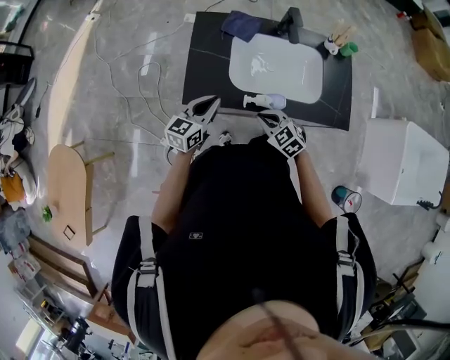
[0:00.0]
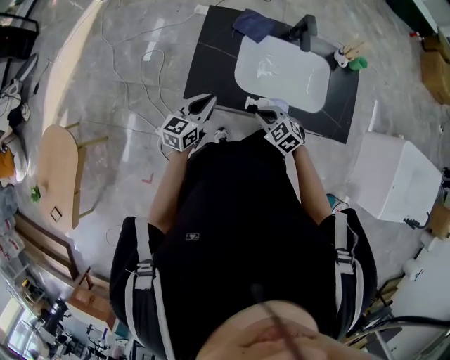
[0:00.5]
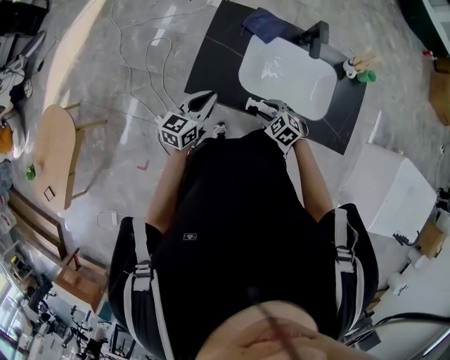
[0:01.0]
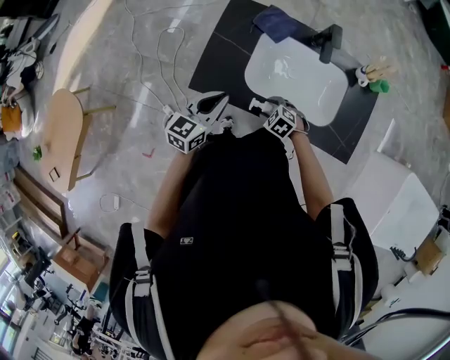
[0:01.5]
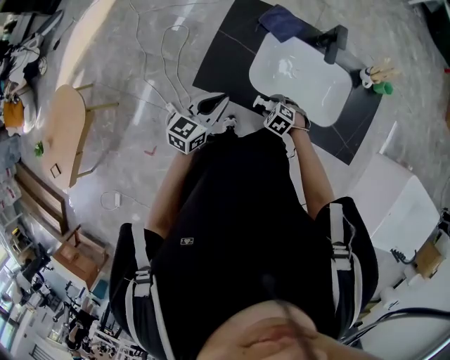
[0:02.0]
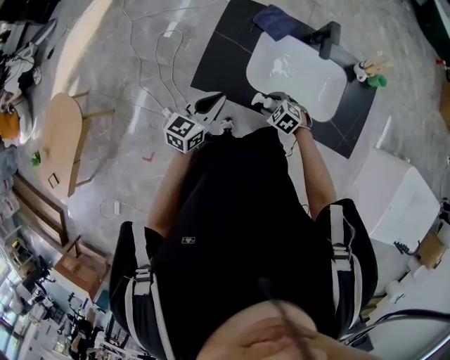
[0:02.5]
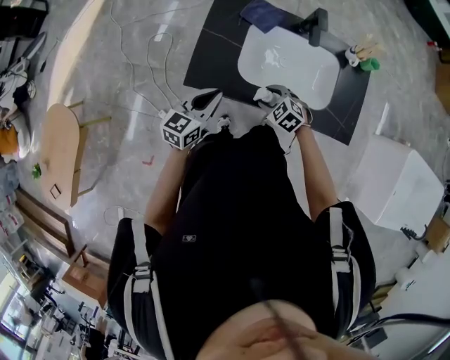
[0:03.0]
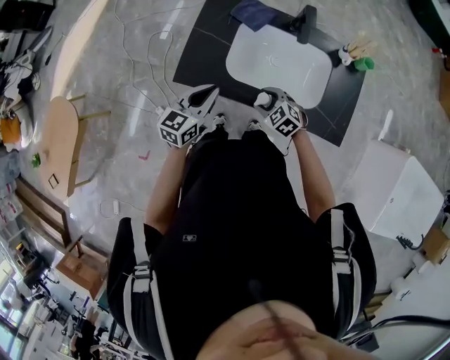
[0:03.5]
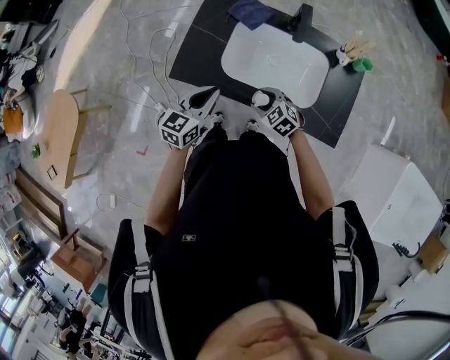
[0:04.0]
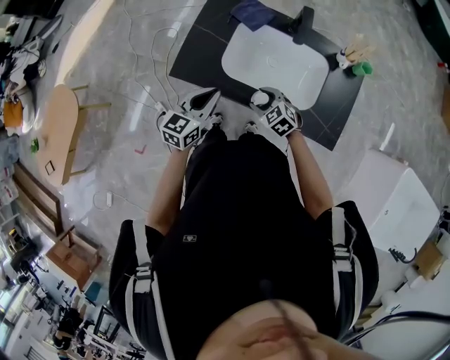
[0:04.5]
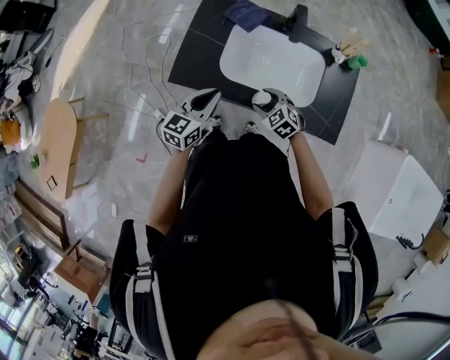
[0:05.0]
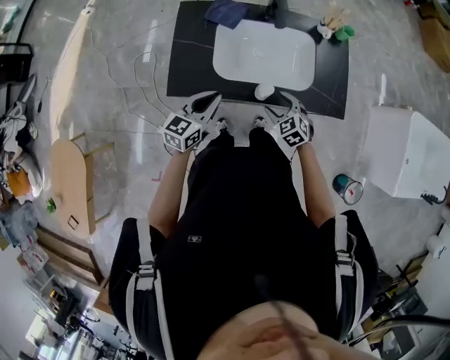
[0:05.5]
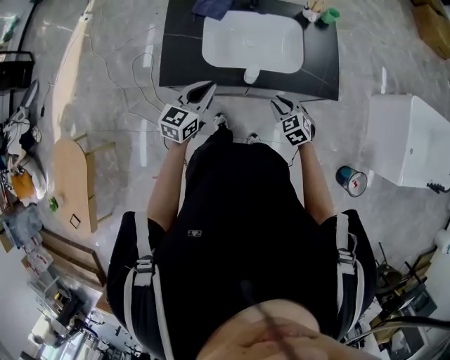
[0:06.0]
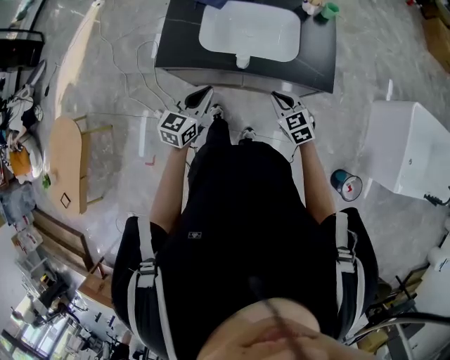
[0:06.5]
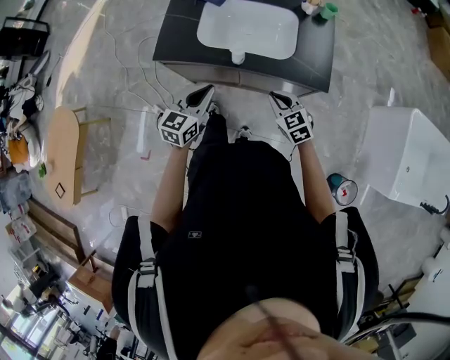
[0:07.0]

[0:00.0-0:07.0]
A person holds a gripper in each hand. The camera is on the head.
0:00.0 to 0:02.0: The right gripper heads downward and forward, covering some 15 cm, turns by approximately 30 degrees, and opens.
0:02.0 to 0:03.5: The left gripper goes roughly 5 cm to the right. Meanwhile the right gripper heads upward, covering about 10 cm, and turns by some 20 degrees.
0:03.5 to 0:05.0: The grippers make only small movements.
0:05.0 to 0:07.0: The left gripper heads backward and to the right, covering approximately 15 cm; the right gripper goes approximately 20 cm backward, to the right and upward, turns by about 20 degrees, and closes up.

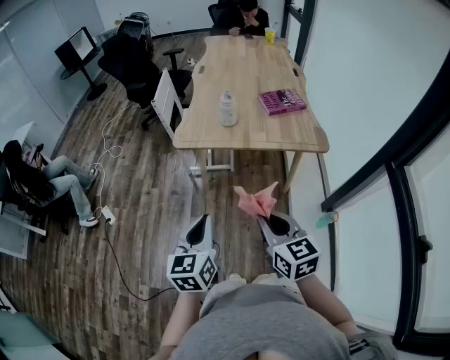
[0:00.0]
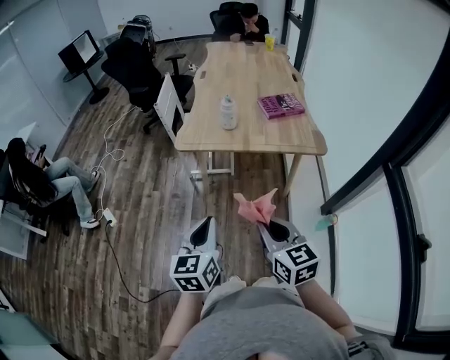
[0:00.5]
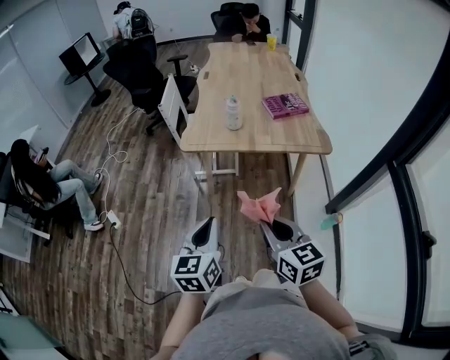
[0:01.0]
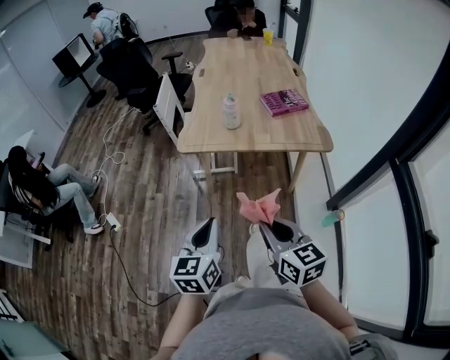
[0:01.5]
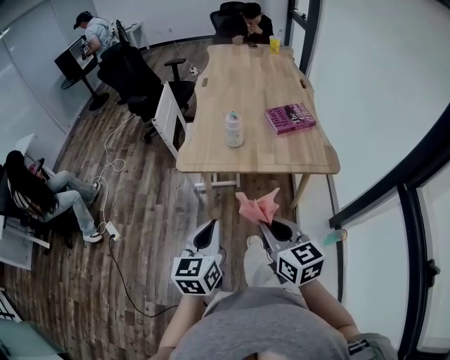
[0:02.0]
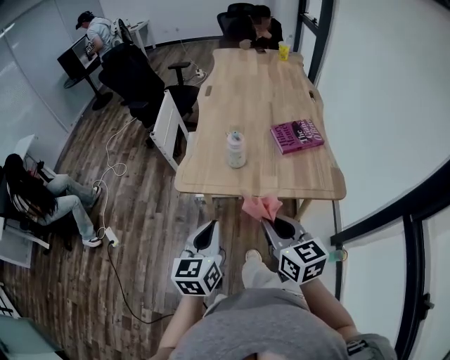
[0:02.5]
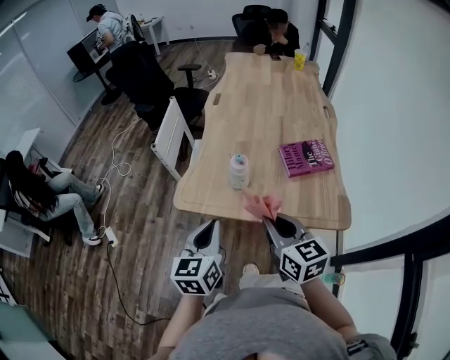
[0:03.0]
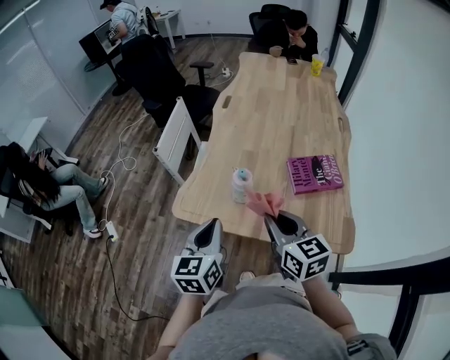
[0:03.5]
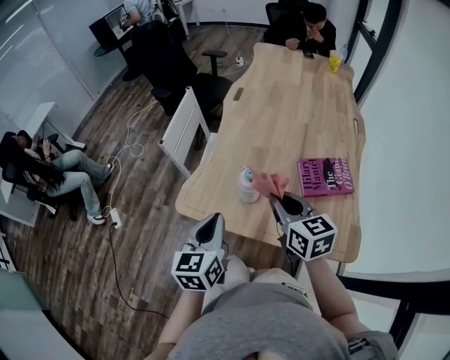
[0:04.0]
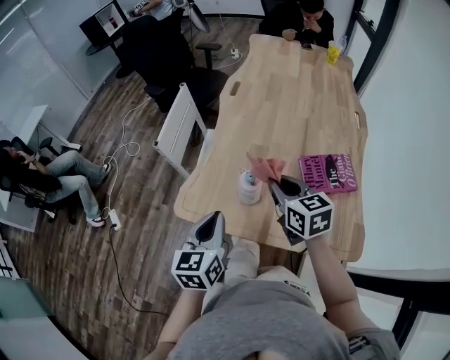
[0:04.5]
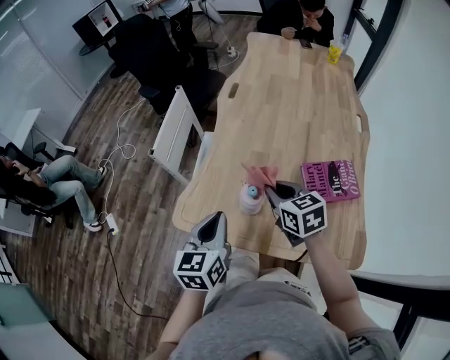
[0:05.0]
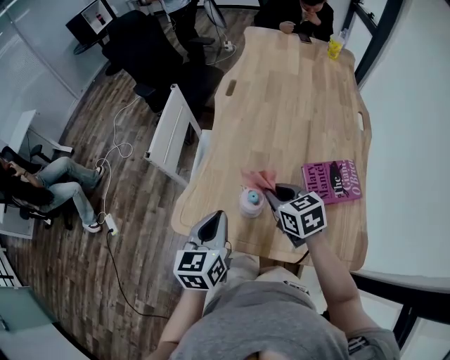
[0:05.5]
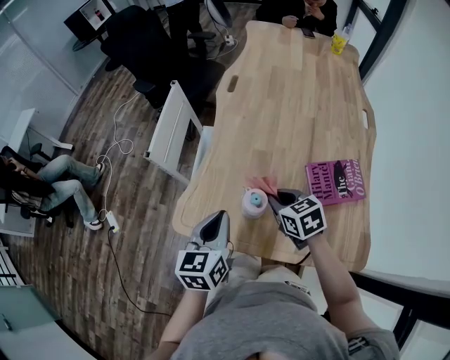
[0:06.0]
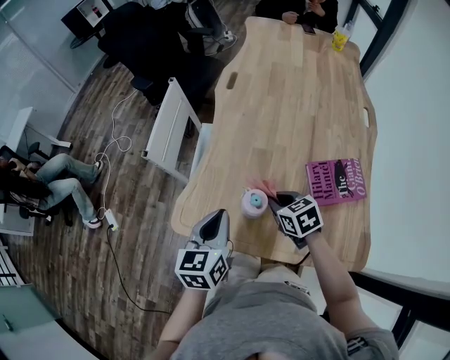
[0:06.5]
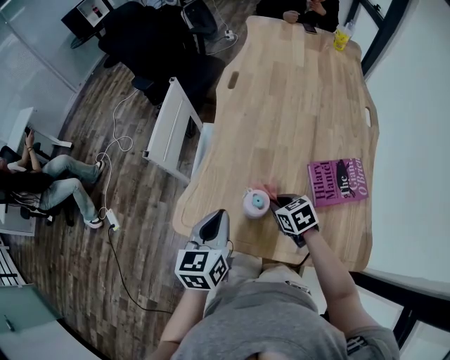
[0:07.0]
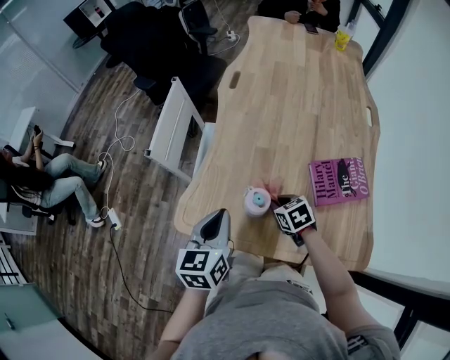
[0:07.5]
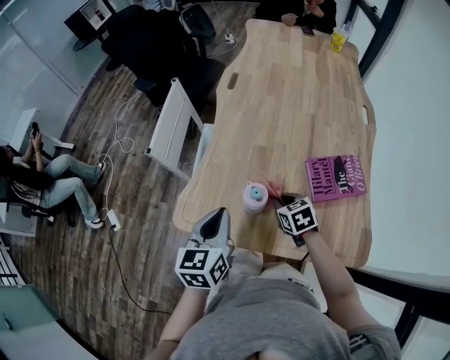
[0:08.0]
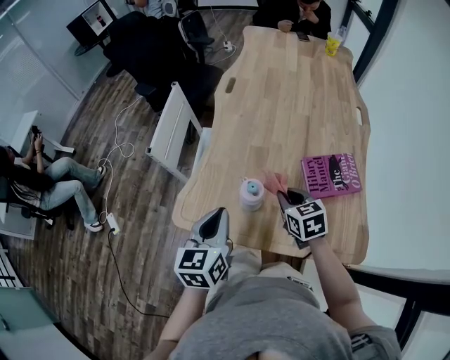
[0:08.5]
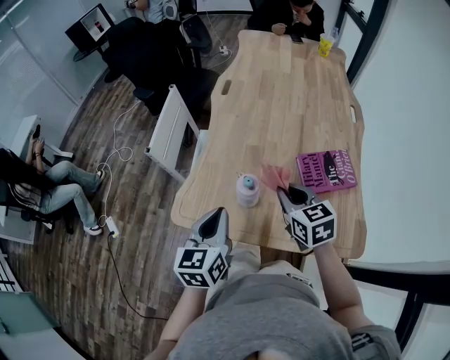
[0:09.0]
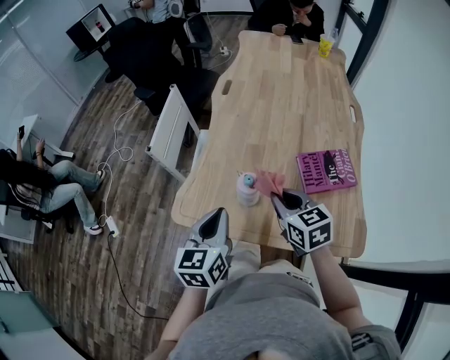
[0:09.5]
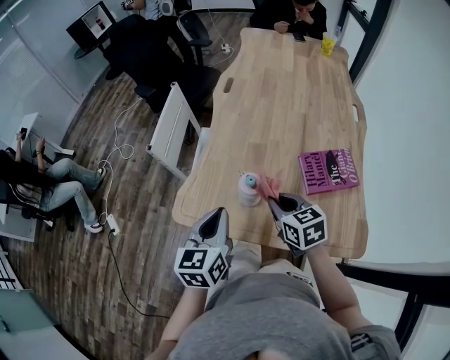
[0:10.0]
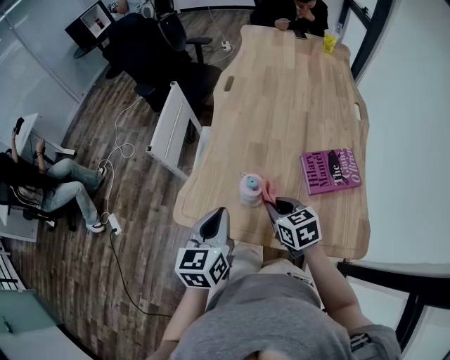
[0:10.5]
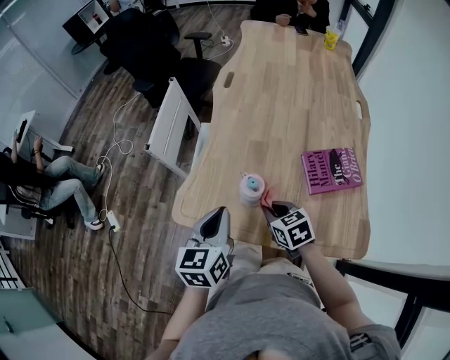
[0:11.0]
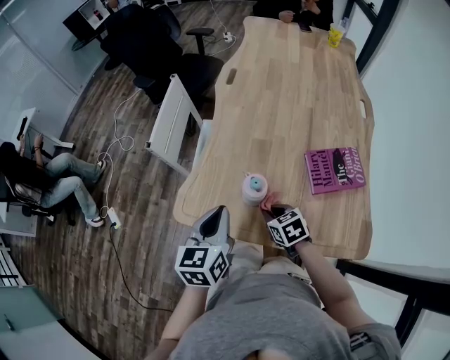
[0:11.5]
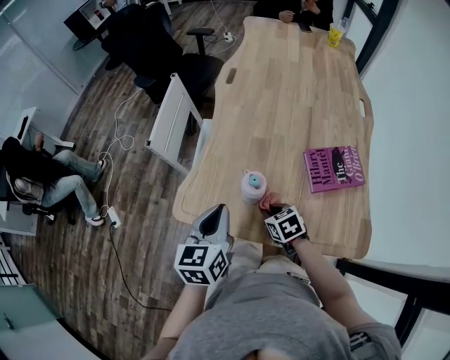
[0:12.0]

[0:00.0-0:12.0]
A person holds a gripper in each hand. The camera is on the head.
0:00.0 to 0:02.0: The grippers both shift forward by some 10 cm.
0:02.0 to 0:04.0: The two grippers go about 35 cm forward.
0:04.0 to 0:06.0: The left gripper heads forward, covering some 10 cm. The right gripper moves downward and forward, about 20 cm, and rotates roughly 20 degrees.
0:06.0 to 0:08.0: The right gripper shifts approximately 10 cm downward.
0:08.0 to 0:10.0: The right gripper is displaced upward by approximately 10 cm.
0:10.0 to 0:12.0: The right gripper moves downward, some 15 cm, and turns by approximately 20 degrees.

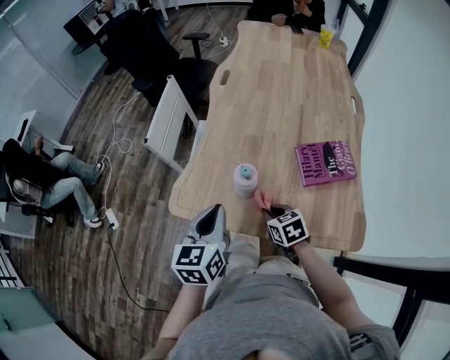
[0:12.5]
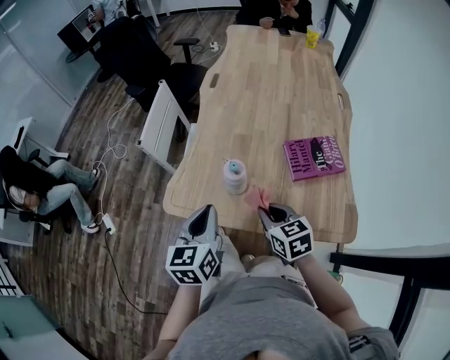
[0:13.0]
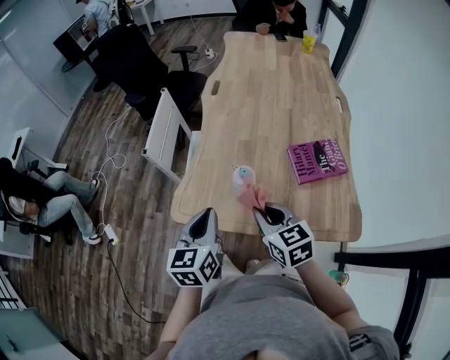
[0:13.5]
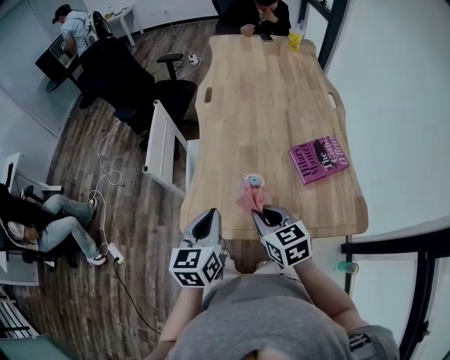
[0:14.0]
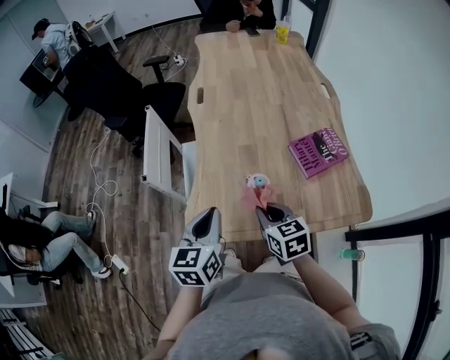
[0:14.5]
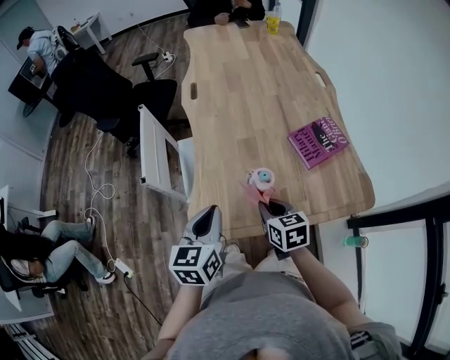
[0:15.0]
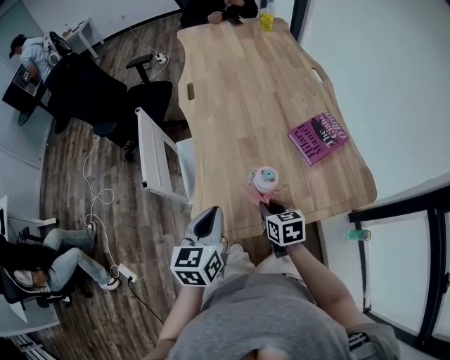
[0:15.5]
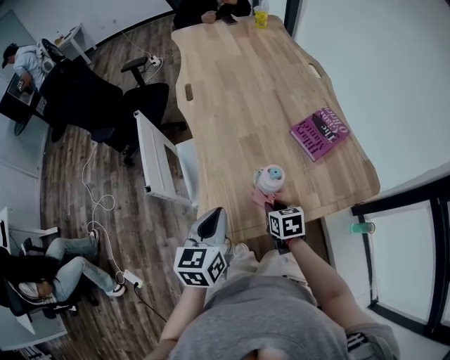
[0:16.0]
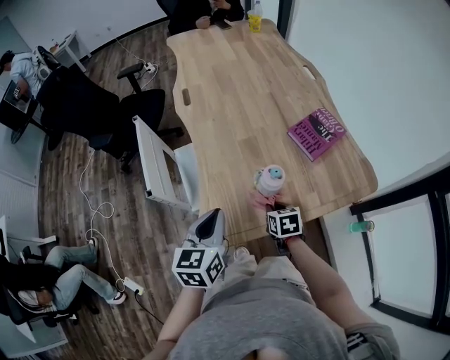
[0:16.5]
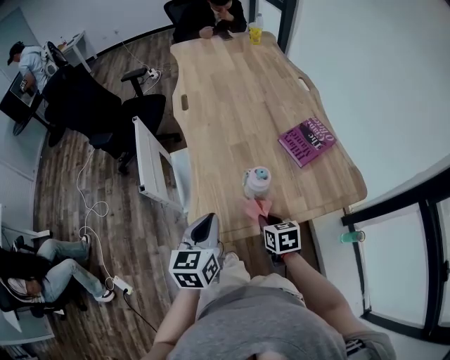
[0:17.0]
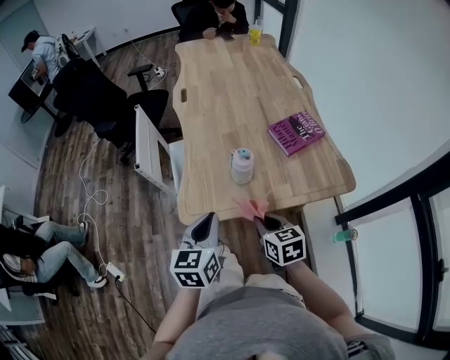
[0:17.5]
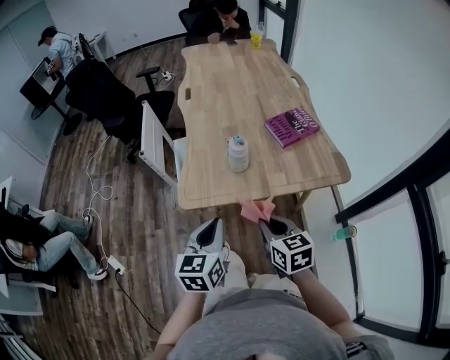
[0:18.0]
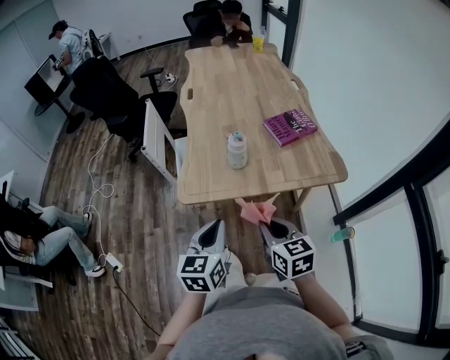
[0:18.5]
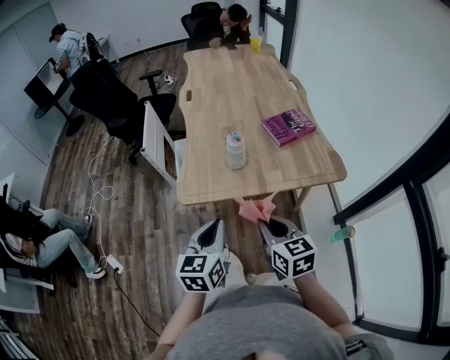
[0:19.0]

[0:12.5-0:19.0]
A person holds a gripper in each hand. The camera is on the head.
0:12.5 to 0:14.5: The left gripper travels to the left and forward by some 10 cm. The right gripper goes about 15 cm upward and to the left, and swivels roughly 30 degrees.
0:14.5 to 0:17.0: The right gripper heads downward, covering roughly 10 cm, and turns by approximately 20 degrees.
0:17.0 to 0:19.0: The right gripper is displaced backward and upward by approximately 25 cm, and swivels approximately 20 degrees; the left gripper heads backward, covering approximately 20 cm.

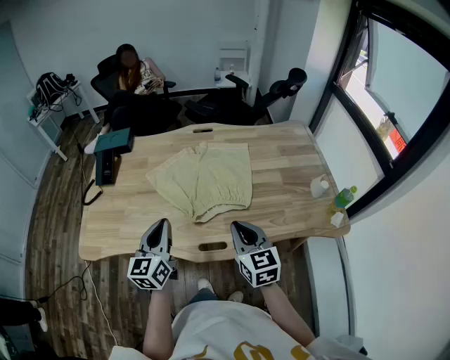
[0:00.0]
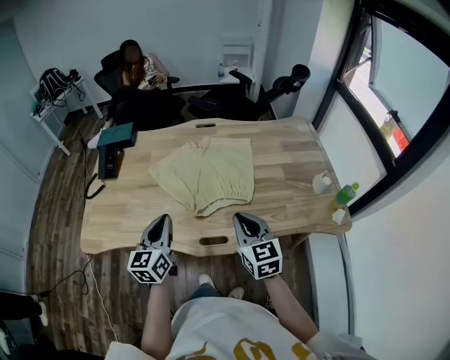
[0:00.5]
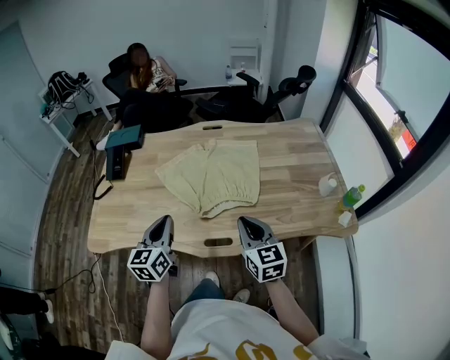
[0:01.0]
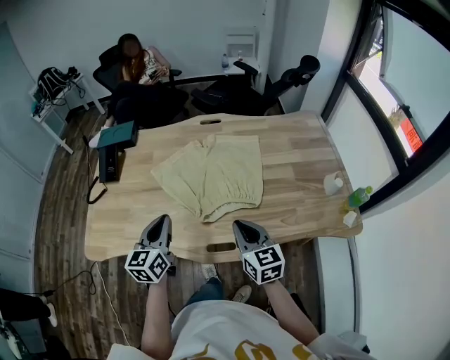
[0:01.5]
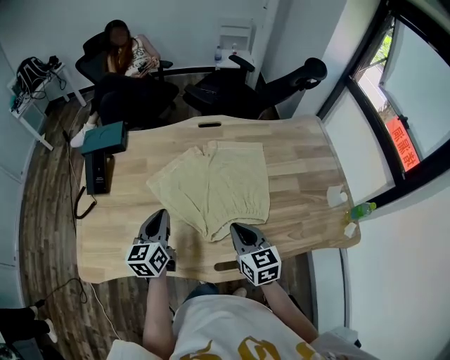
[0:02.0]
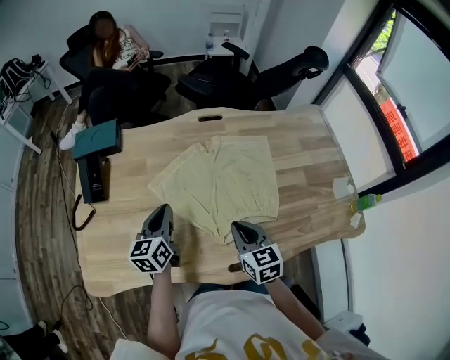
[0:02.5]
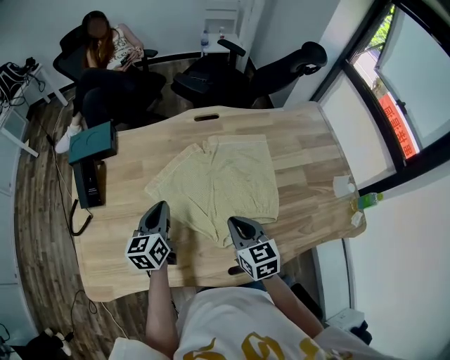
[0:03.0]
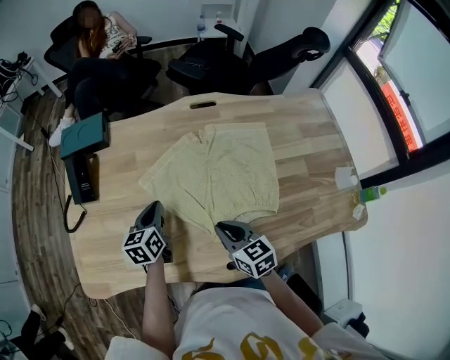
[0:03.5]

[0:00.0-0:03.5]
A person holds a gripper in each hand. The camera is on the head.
0:00.0 to 0:02.0: The right gripper travels forward, downward and to the left by about 15 cm, while the left gripper goes roughly 15 cm forward and downward.
0:02.0 to 0:03.5: The left gripper shifts roughly 10 cm downward and forward. The right gripper heads to the left and downward, covering roughly 10 cm.
